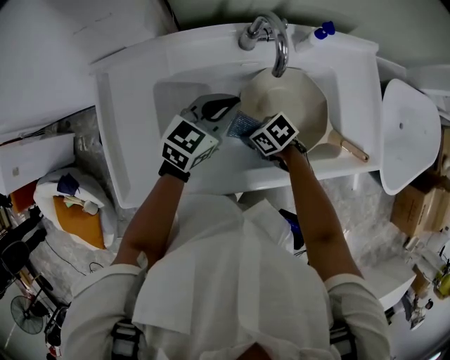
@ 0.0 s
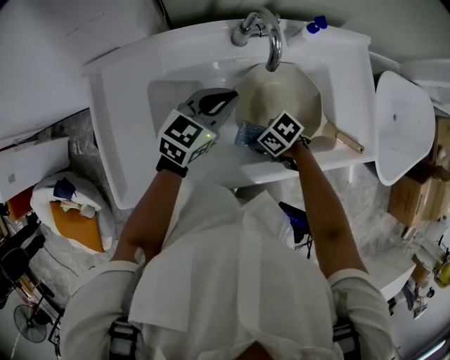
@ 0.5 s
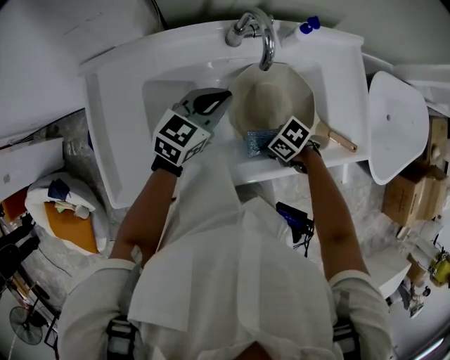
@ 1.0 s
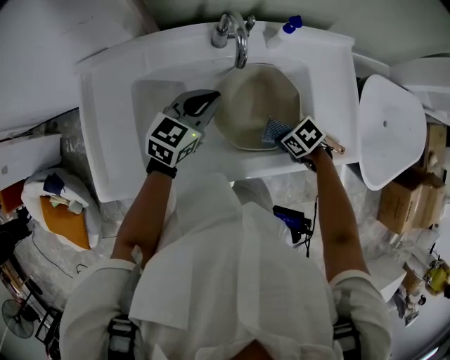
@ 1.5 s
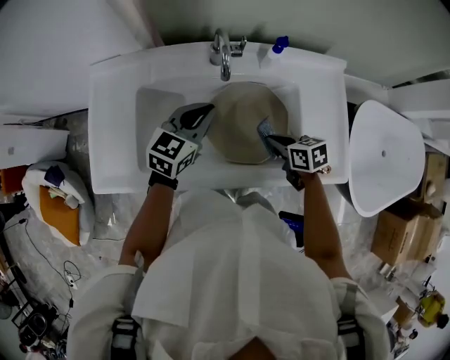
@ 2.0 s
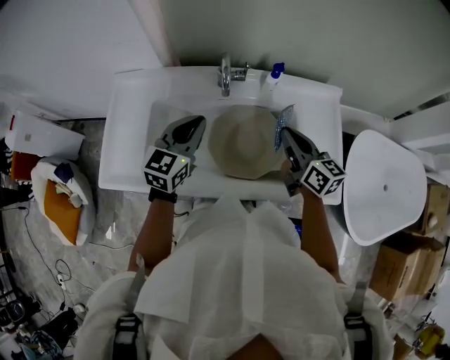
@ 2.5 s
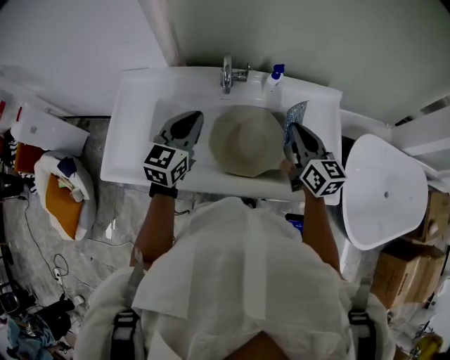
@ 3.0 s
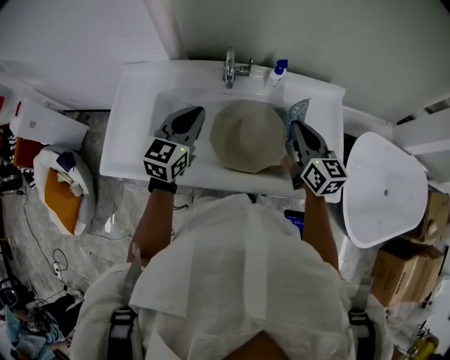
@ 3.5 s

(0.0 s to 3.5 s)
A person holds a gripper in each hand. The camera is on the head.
0.0 s - 2.0 s: The left gripper changes place by roughly 5 cm, while the right gripper moves roughly 20 cm, and changes its angle by some 30 degrees.
2.0 s - 3.5 s: The right gripper moves upward, about 20 cm, and tips its fingers upward by approximately 30 degrees. Meanwhile the left gripper is displaced upward by approximately 10 cm.

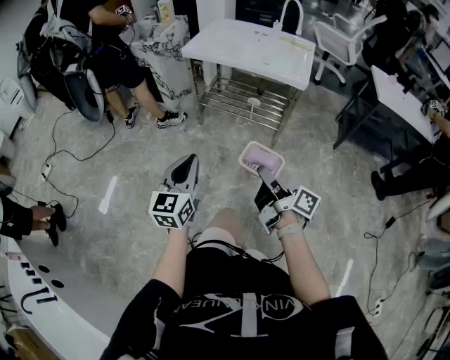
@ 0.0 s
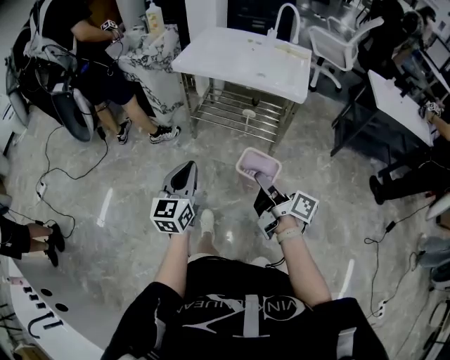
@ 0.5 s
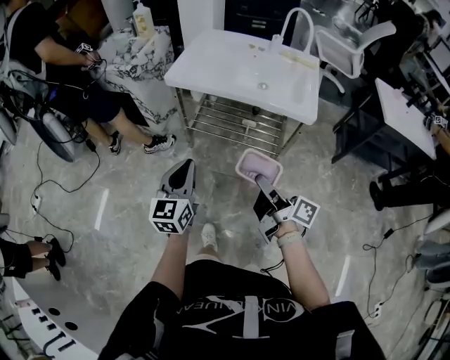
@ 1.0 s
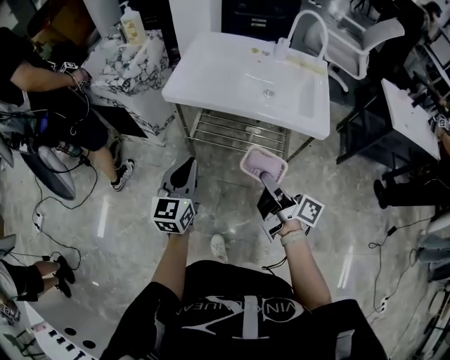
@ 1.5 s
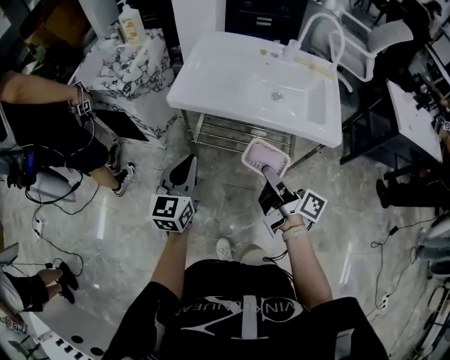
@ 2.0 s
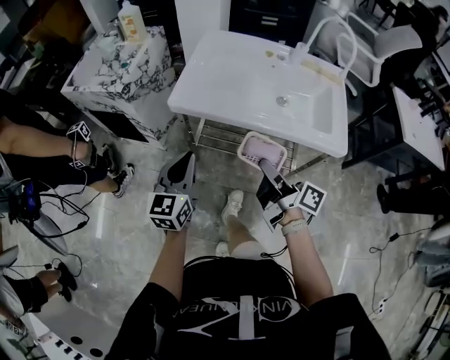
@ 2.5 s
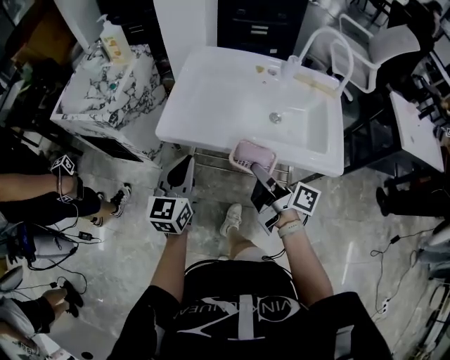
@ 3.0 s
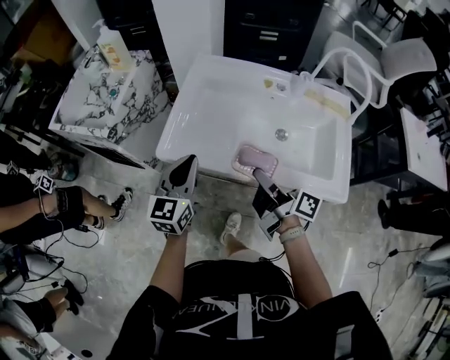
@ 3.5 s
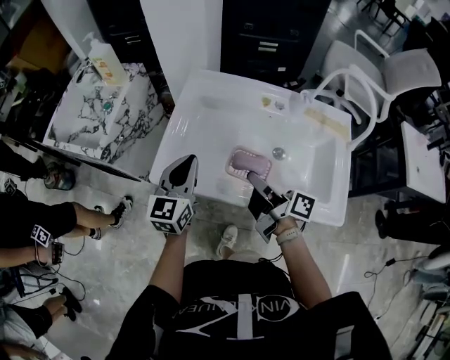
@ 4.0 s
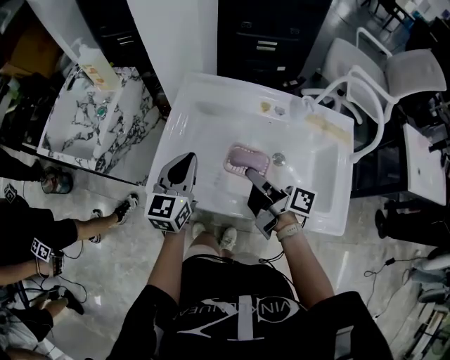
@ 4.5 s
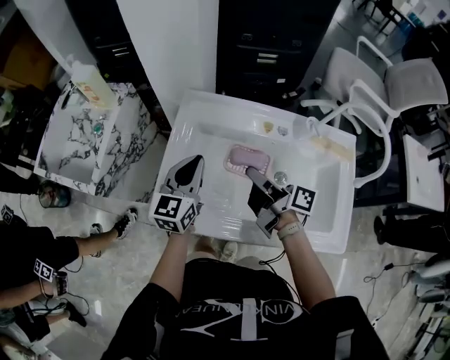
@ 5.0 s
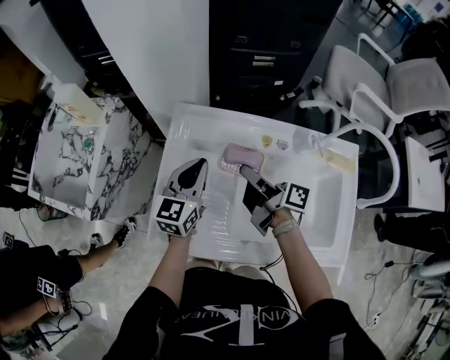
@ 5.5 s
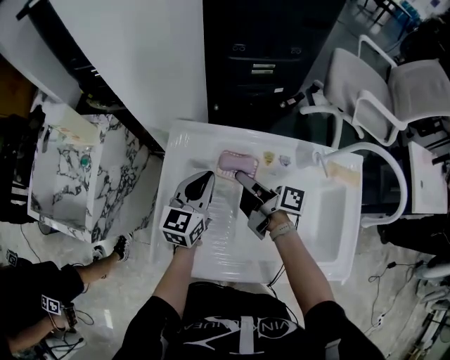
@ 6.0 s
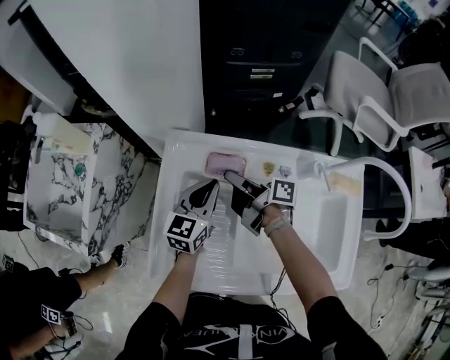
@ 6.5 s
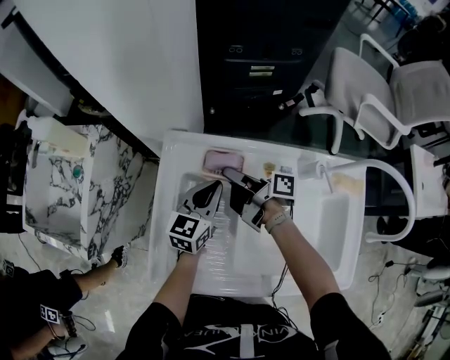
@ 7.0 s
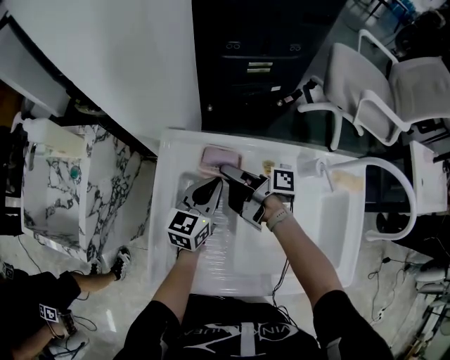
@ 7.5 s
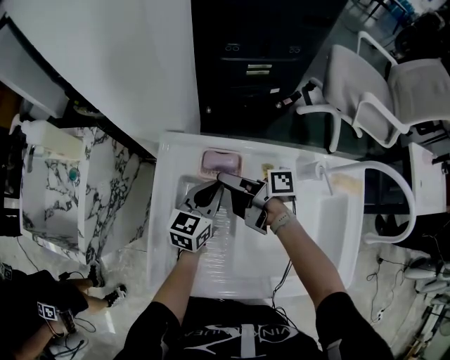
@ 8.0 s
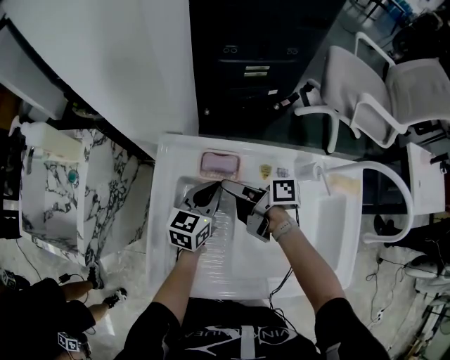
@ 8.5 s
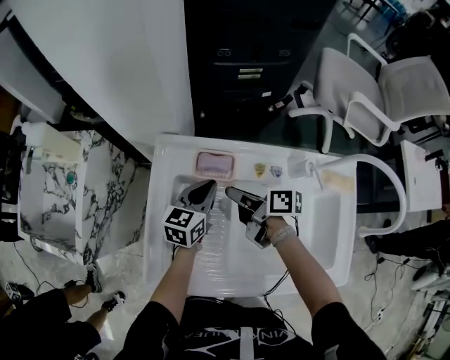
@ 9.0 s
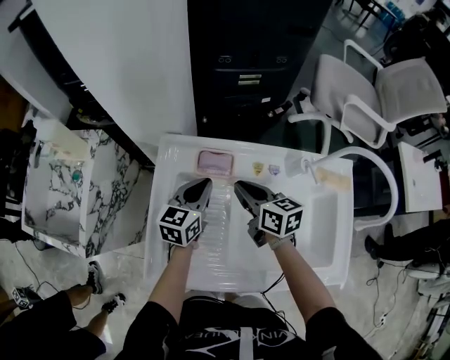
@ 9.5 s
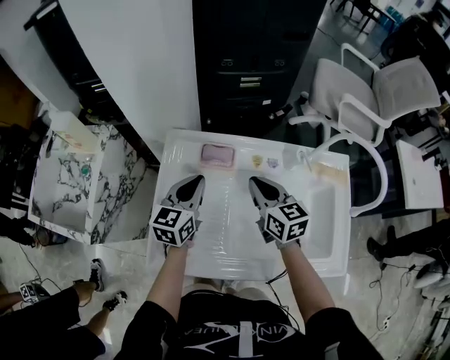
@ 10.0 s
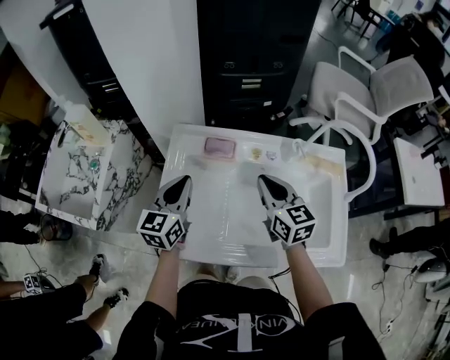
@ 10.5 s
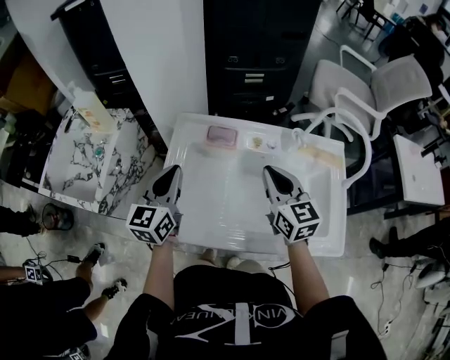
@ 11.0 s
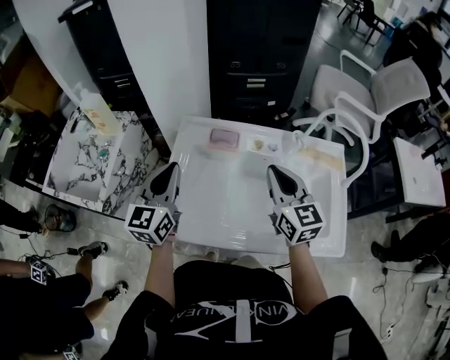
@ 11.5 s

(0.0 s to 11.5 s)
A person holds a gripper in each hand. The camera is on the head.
0.0 s - 2.0 s: The two grippers travel together, forward, roughly 40 cm.
2.0 s - 4.0 s: The grippers both shift forward by approximately 30 cm.
4.0 s - 6.0 s: Both grippers travel together forward, about 25 cm.
6.0 s - 7.5 s: The left gripper changes place by approximately 5 cm; the right gripper shifts some 5 cm forward.
7.5 s - 9.5 s: The right gripper goes roughly 5 cm backward, twists about 60 degrees counterclockwise, seen from behind, and opens, then closes again.
9.5 s - 11.5 s: The left gripper is displaced upward, backward and to the left by some 25 cm, and changes its angle by roughly 30 degrees. The right gripper shifts approximately 20 cm upward and backward, and rotates some 30 degrees.

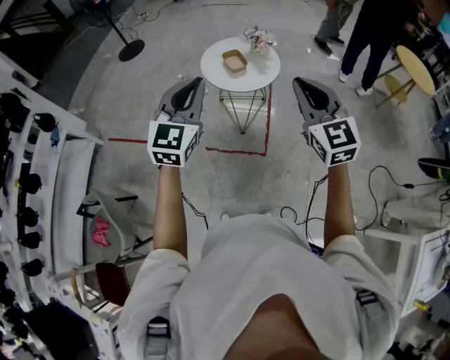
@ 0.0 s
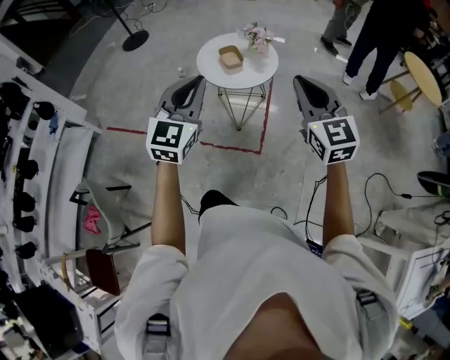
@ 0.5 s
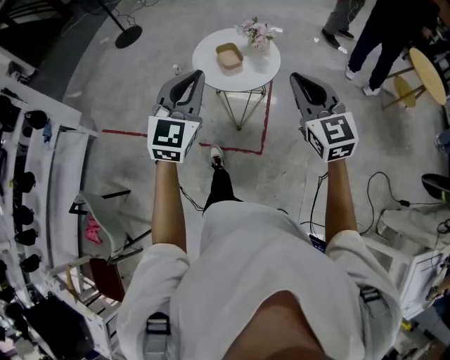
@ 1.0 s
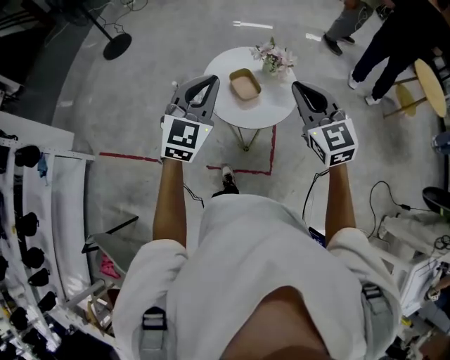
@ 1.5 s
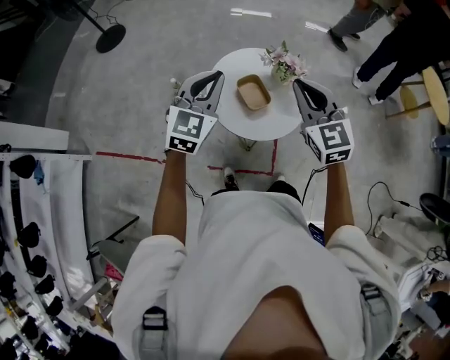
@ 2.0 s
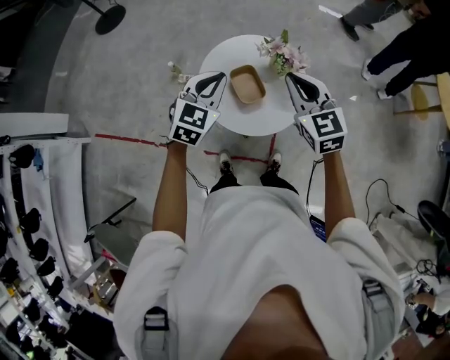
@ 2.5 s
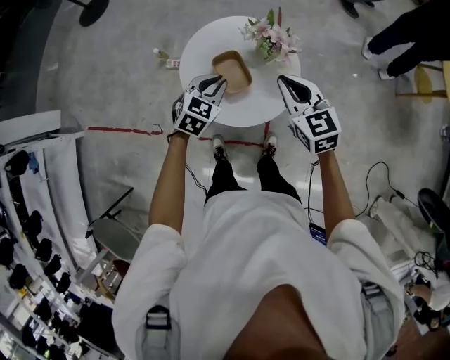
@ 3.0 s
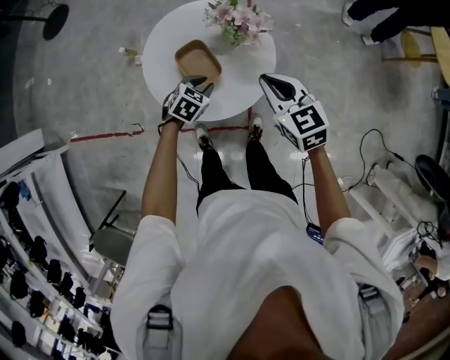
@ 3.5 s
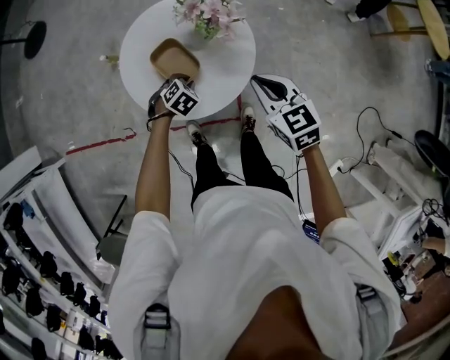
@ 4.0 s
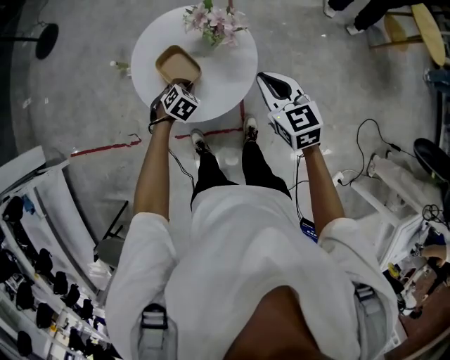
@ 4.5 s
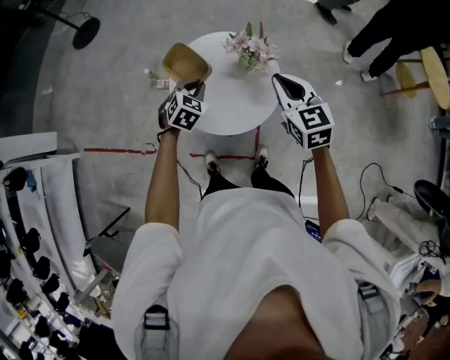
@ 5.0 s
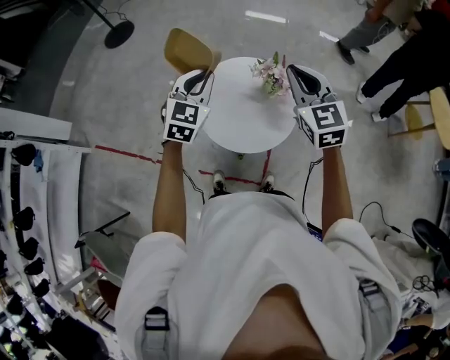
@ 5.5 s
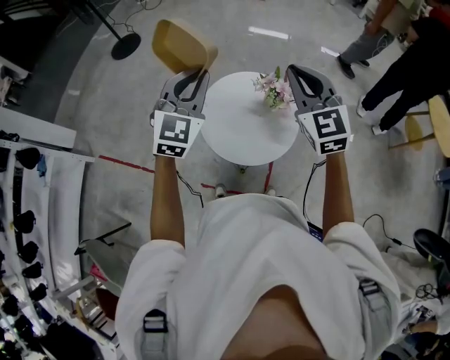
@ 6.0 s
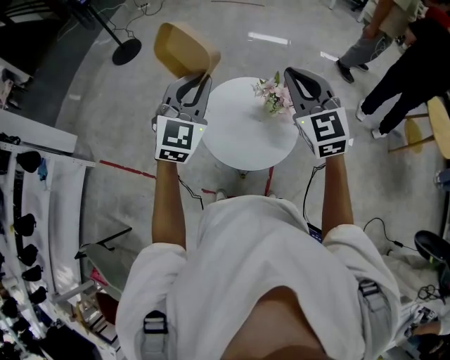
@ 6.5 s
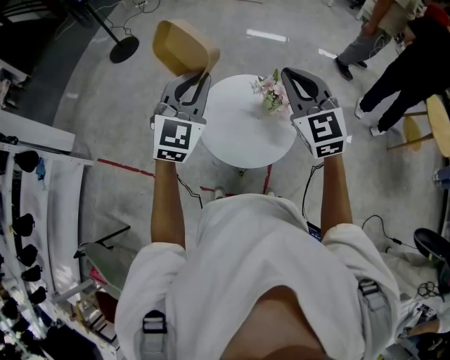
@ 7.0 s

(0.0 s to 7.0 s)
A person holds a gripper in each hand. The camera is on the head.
0.0 s - 2.0 s: The two grippers travel together, forward, some 50 cm.
2.0 s - 3.5 s: The left gripper travels downward and to the right by some 40 cm, angles its fingers downward, by roughly 40 degrees, and opens. The right gripper is displaced downward and to the right by about 25 cm, and changes its angle by roughly 30 degrees.
3.5 s - 5.0 s: The right gripper travels upward by roughly 10 cm. Meanwhile the left gripper shifts some 15 cm upward and to the left, and swivels some 20 degrees.
5.0 s - 7.0 s: The left gripper shifts approximately 30 cm upward, and angles its fingers upward, by roughly 40 degrees. The right gripper shifts roughly 20 cm upward and to the left, and swivels roughly 30 degrees.

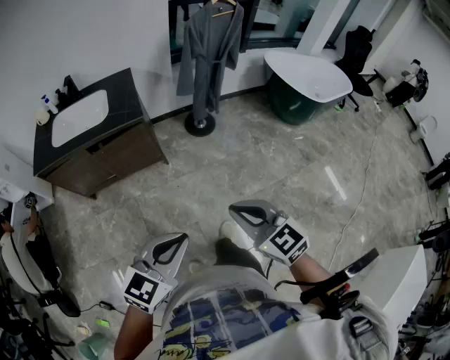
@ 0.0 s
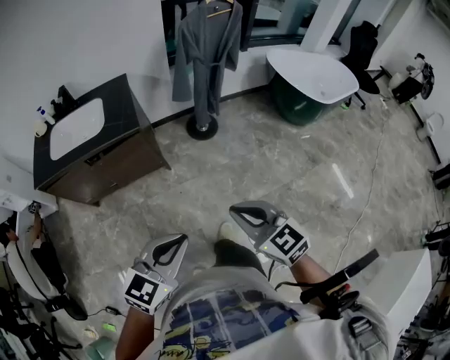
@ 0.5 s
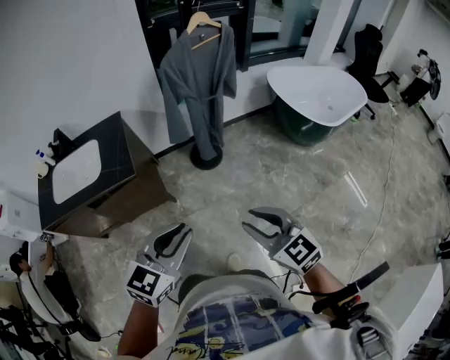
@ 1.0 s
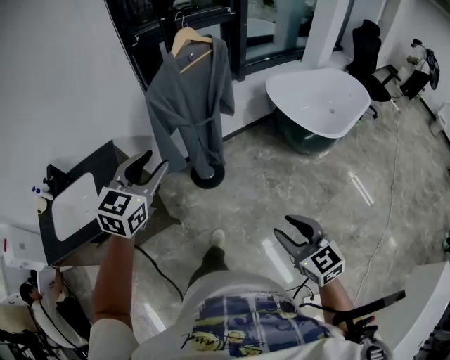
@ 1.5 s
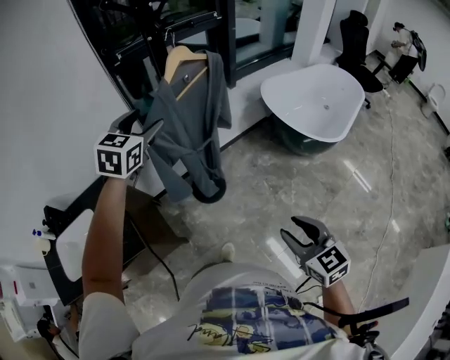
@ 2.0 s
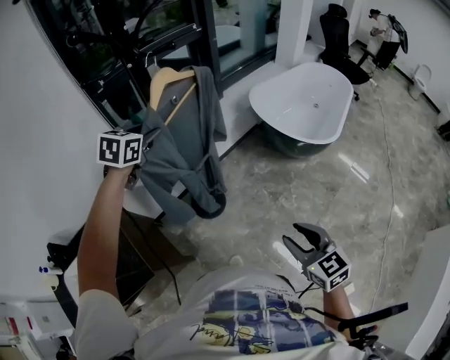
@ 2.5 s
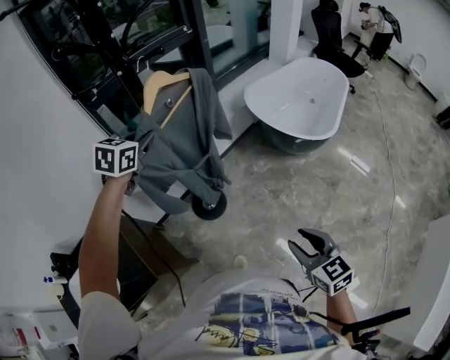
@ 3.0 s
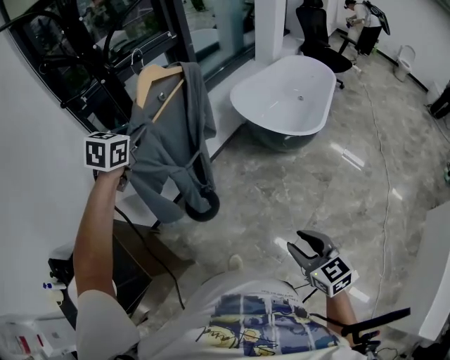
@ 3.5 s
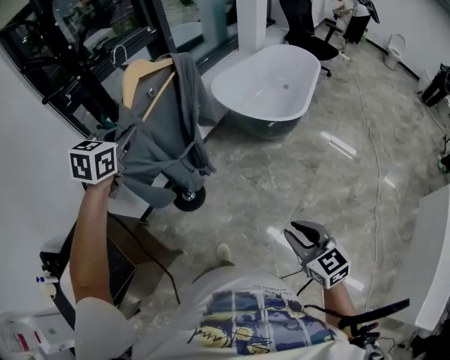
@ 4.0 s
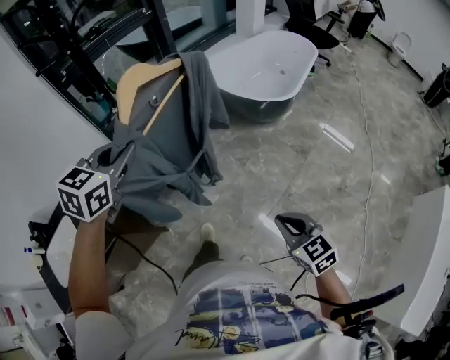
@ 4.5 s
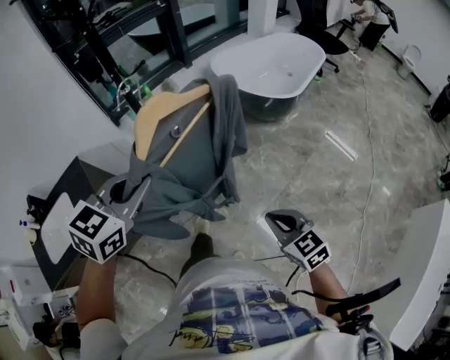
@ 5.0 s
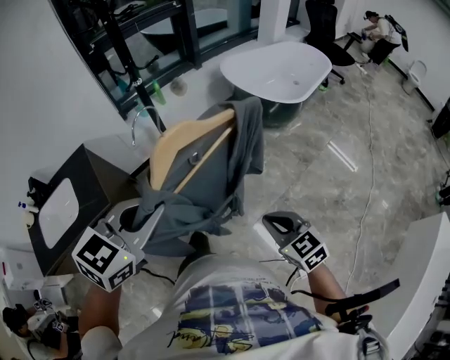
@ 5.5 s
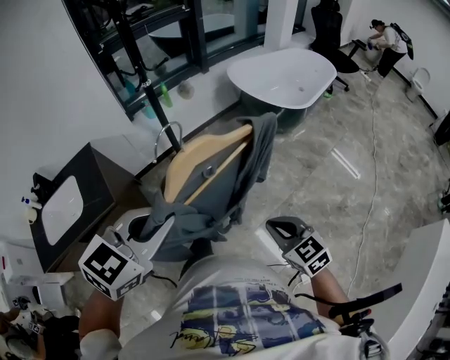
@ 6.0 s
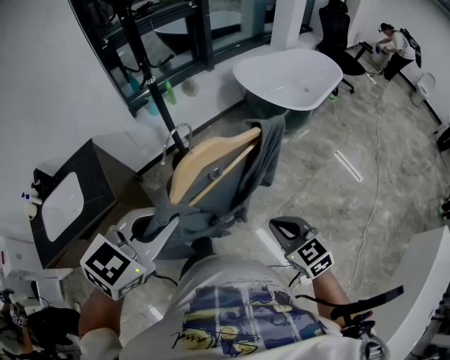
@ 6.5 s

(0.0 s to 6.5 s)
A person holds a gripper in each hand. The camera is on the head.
0.0 s - 2.0 s: The pair of grippers is taken forward, some 60 cm. The left gripper opens up. Meanwhile the right gripper changes its angle by roughly 30 degrees, and opens.
2.0 s - 4.5 s: The right gripper moves to the right, backward and downward, approximately 20 cm, and closes up, while the left gripper moves to the right and backward, about 25 cm, and closes its fingers.
4.5 s - 6.5 s: The left gripper moves backward, approximately 30 cm. Meanwhile the right gripper is displaced backward by about 5 cm.
